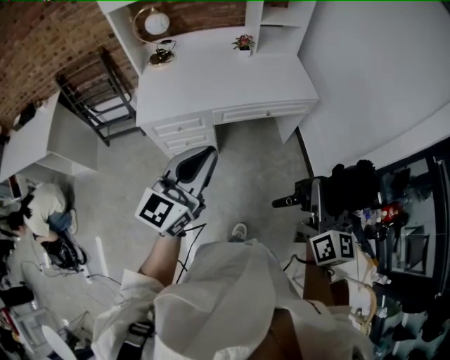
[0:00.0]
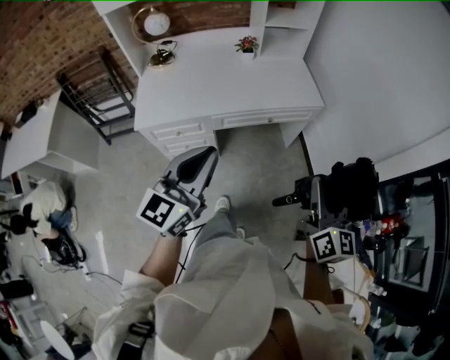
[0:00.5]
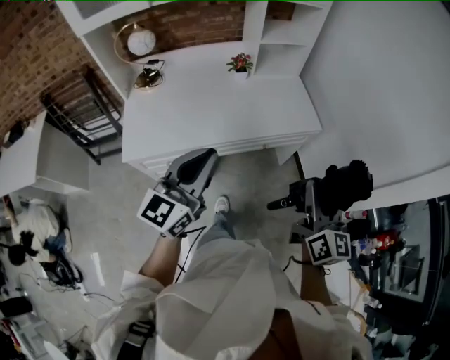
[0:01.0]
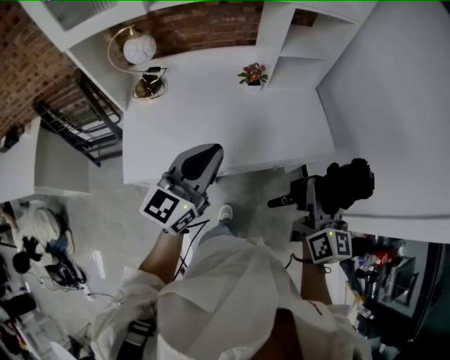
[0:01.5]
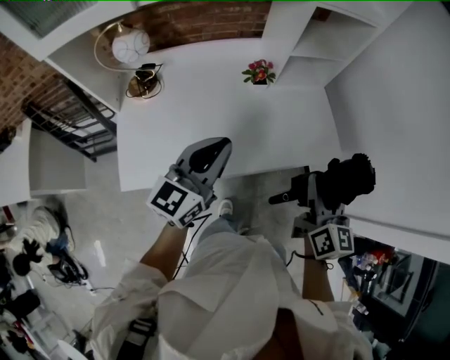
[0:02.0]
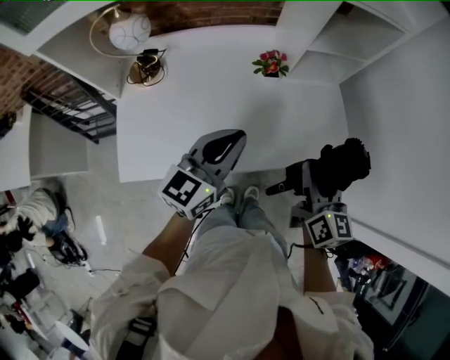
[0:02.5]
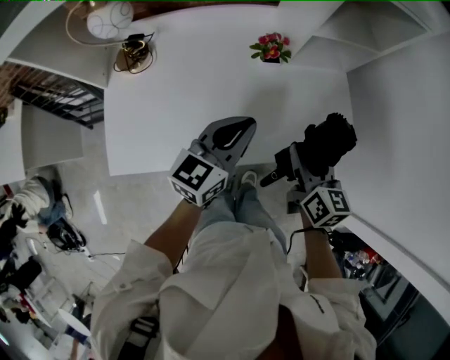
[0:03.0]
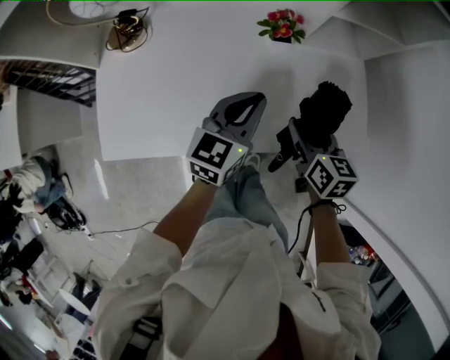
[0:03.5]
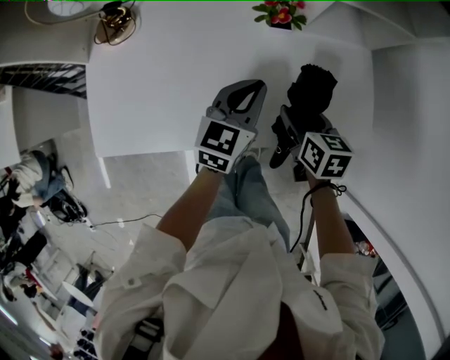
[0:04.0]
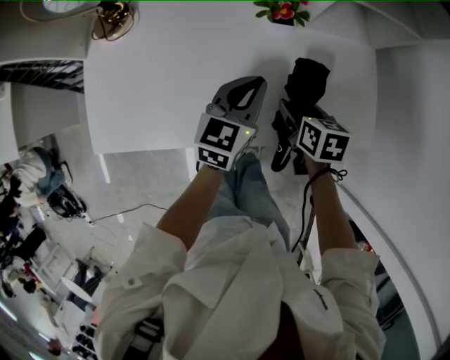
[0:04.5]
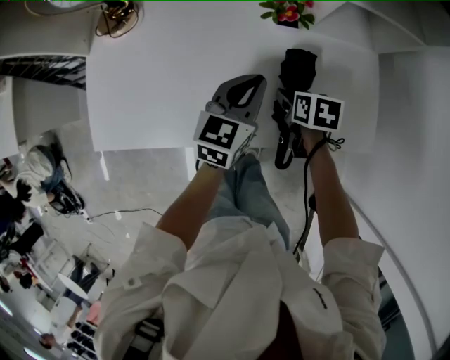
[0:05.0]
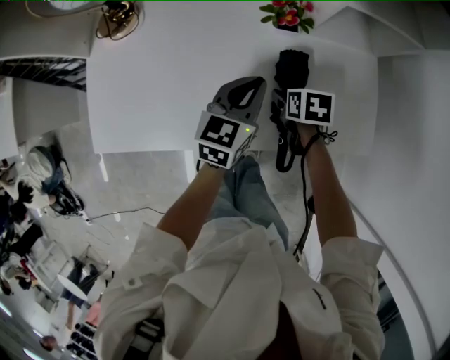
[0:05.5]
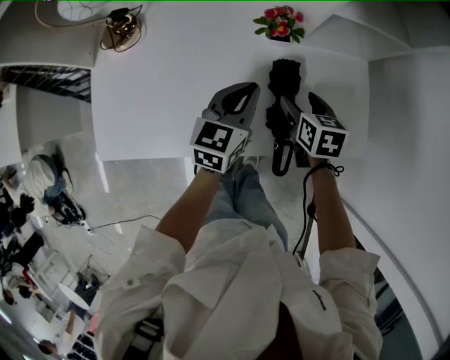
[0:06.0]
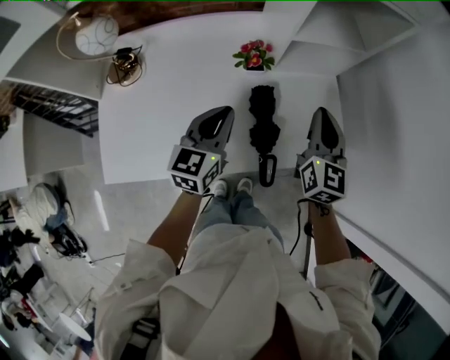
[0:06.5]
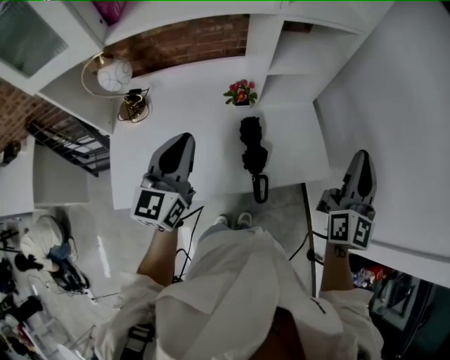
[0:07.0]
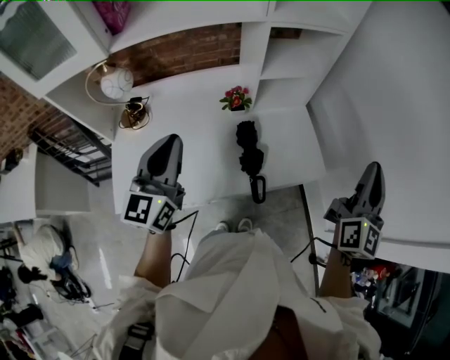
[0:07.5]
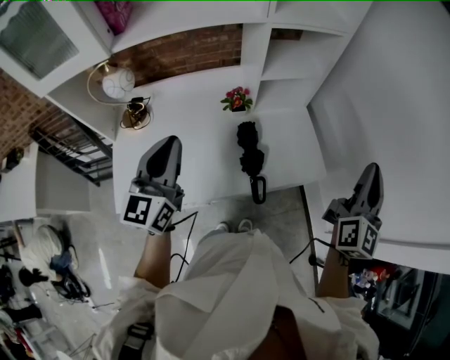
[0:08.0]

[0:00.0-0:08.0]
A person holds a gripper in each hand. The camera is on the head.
0:00.0 to 0:02.0: The pair of grippers is taken forward, roughly 50 cm.
0:02.0 to 0:04.0: The two grippers go roughly 35 cm downward and forward. The left gripper rotates about 20 degrees. The right gripper tilts its fingers approximately 40 degrees downward.
0:04.0 to 0:06.0: The right gripper is displaced forward by some 5 cm, and reaches roughly 10 cm downward, then returns.
0:06.0 to 0:08.0: The right gripper is displaced upward and to the right by approximately 50 cm, tilts its fingers roughly 60 degrees upward, and closes its fingers; the left gripper goes roughly 35 cm upward and backward, and swivels roughly 30 degrees.

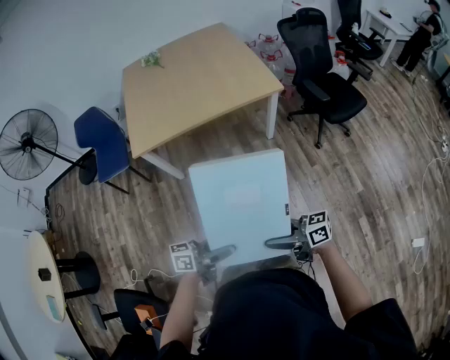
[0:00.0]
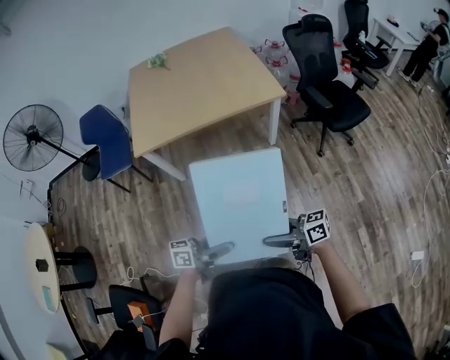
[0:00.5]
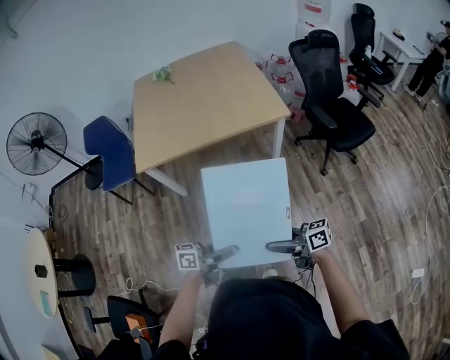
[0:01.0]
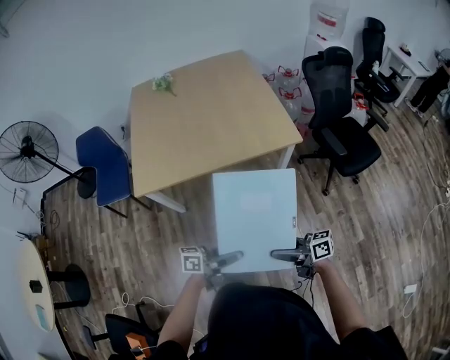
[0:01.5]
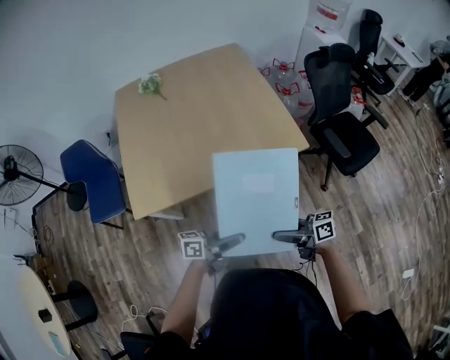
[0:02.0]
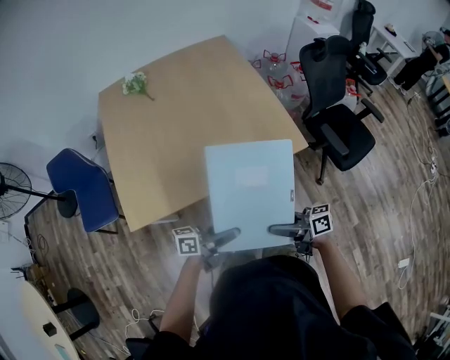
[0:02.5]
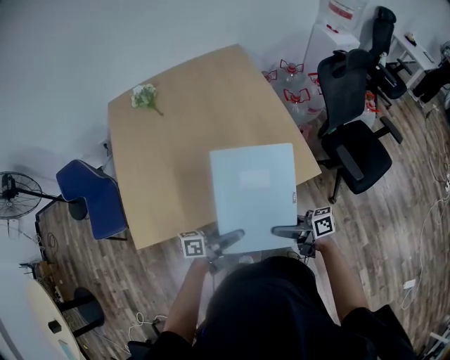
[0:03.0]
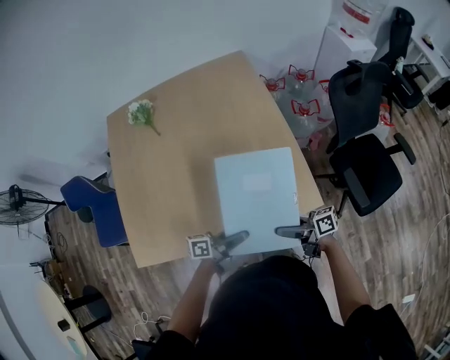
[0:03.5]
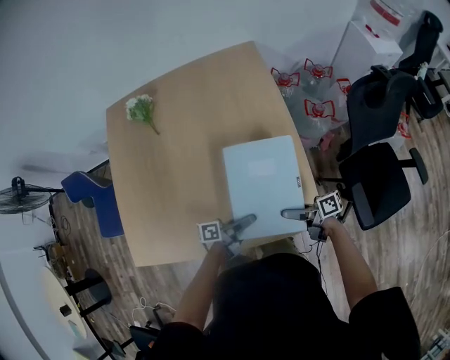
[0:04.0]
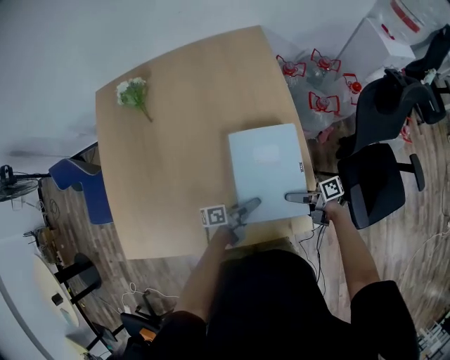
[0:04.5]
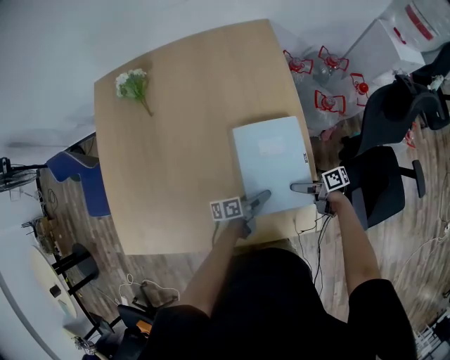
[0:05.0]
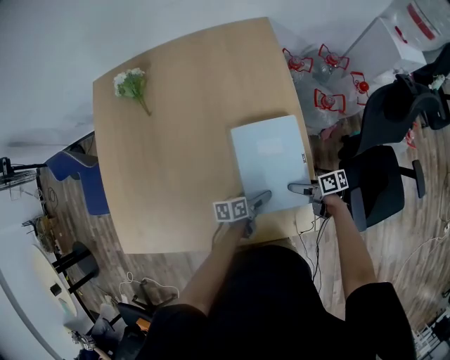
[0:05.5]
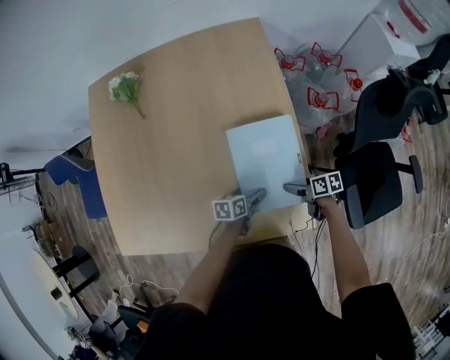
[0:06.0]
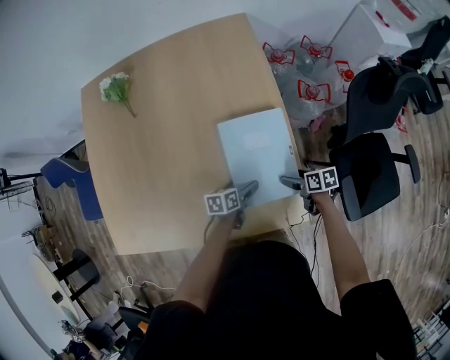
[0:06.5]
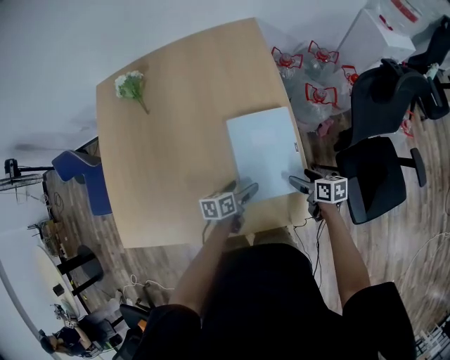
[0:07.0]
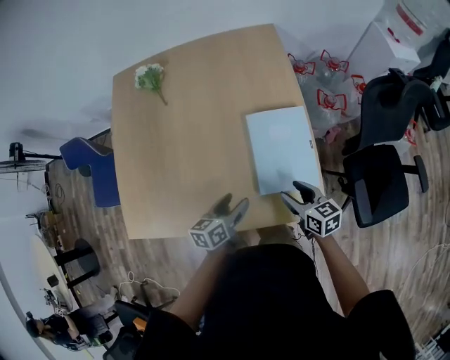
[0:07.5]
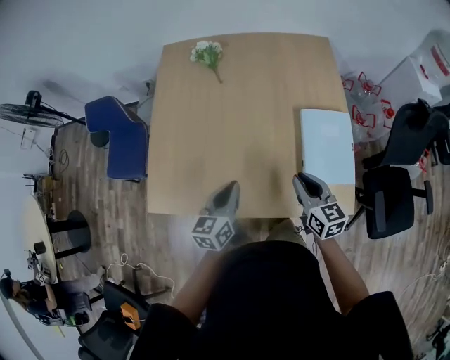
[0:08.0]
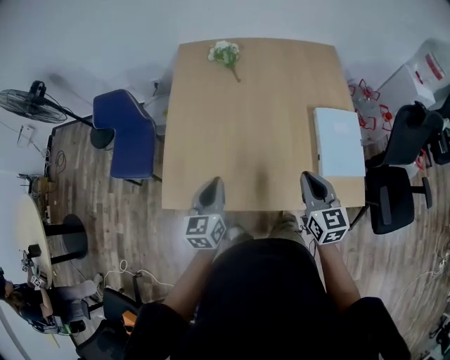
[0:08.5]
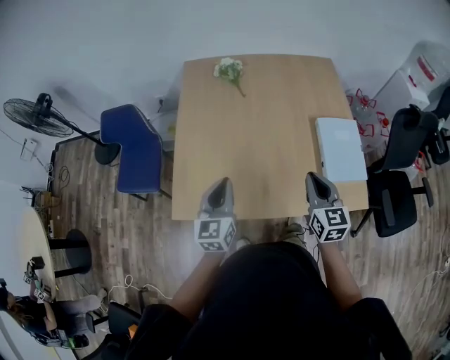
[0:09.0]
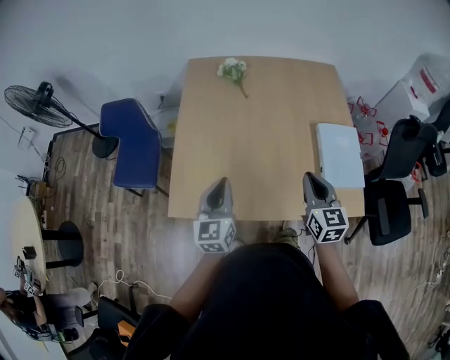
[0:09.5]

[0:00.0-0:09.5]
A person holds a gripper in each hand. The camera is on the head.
0:00.0 to 0:02.0: Both grippers are carried some 50 cm.
0:02.0 to 0:04.0: Both grippers are carried some 60 cm. The left gripper swivels roughly 30 degrees. The right gripper rotates roughly 20 degrees.
0:04.0 to 0:05.5: The two grippers go about 10 cm downward. The left gripper swivels approximately 30 degrees. Meanwhile the right gripper changes its angle by roughly 30 degrees.
0:05.5 to 0:07.5: The grippers both shift upward by some 15 cm. The right gripper swivels roughly 50 degrees, and closes; the left gripper rotates roughly 20 degrees.
0:07.5 to 0:09.5: Both grippers travel together to the left and upward, about 40 cm. The right gripper changes its angle by about 30 degrees, and closes its fingers. Meanwhile the left gripper changes its angle by roughly 50 degrees, and closes.

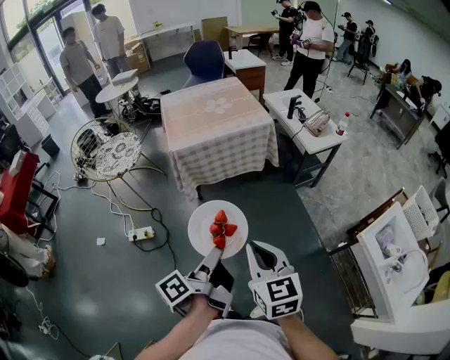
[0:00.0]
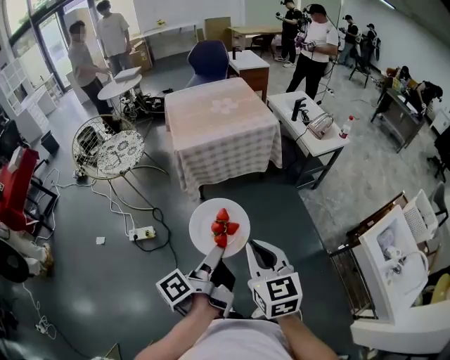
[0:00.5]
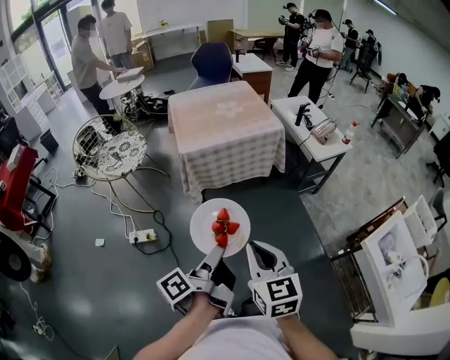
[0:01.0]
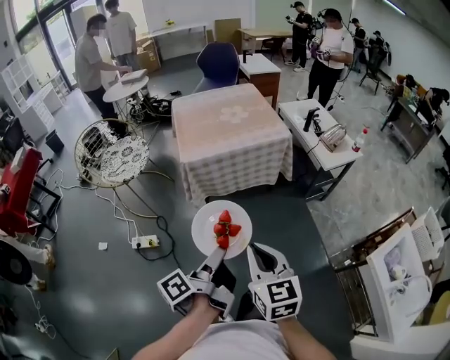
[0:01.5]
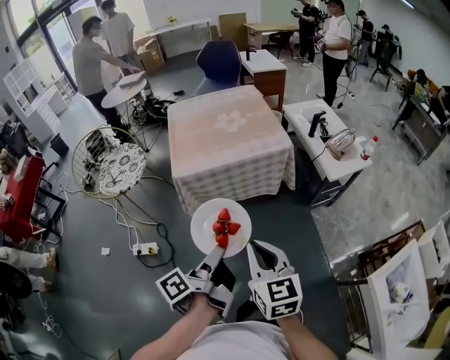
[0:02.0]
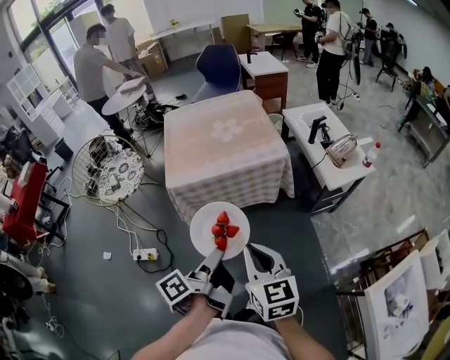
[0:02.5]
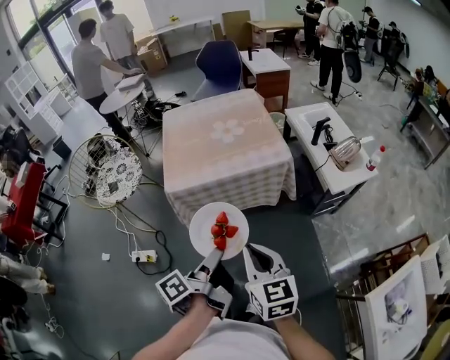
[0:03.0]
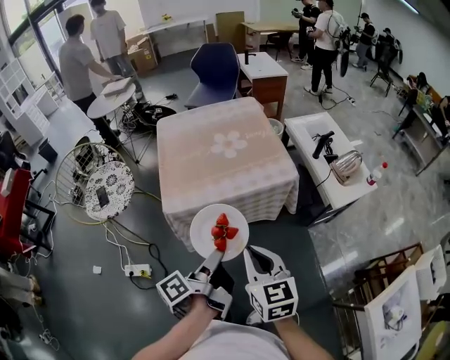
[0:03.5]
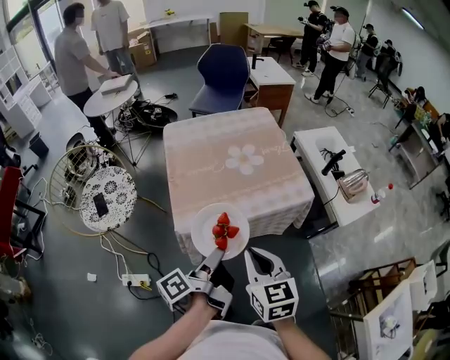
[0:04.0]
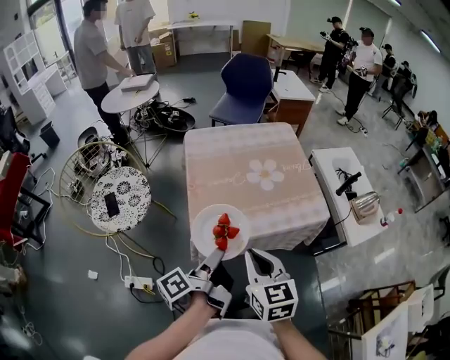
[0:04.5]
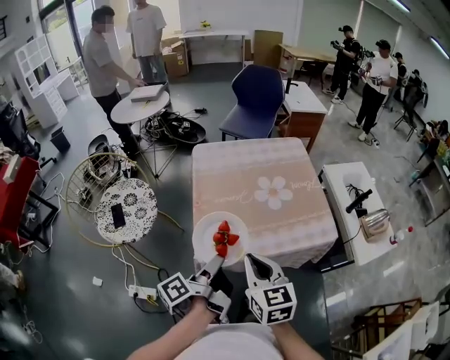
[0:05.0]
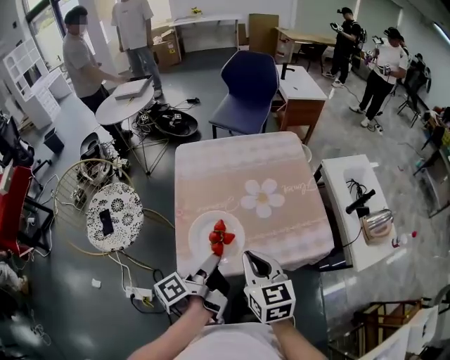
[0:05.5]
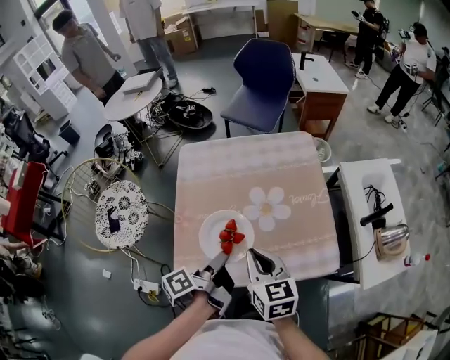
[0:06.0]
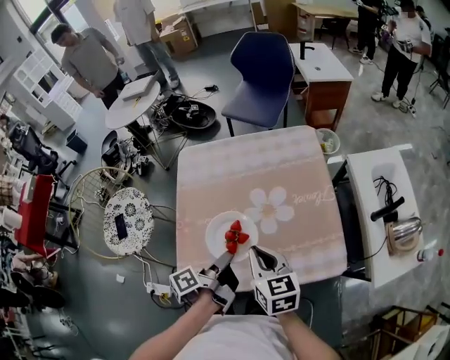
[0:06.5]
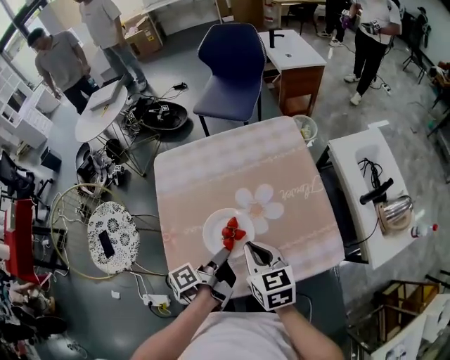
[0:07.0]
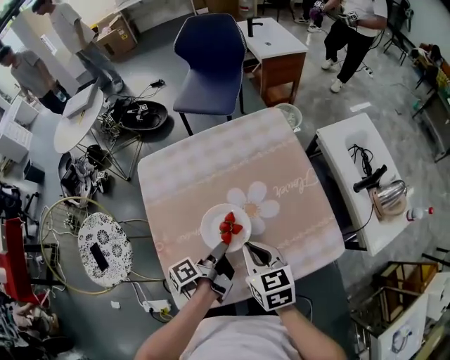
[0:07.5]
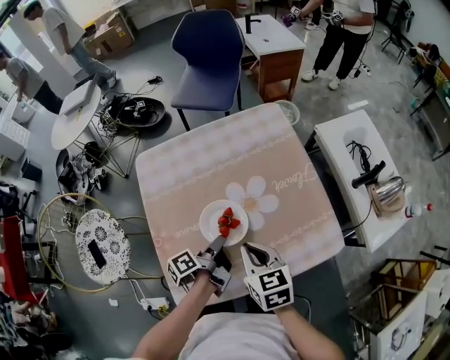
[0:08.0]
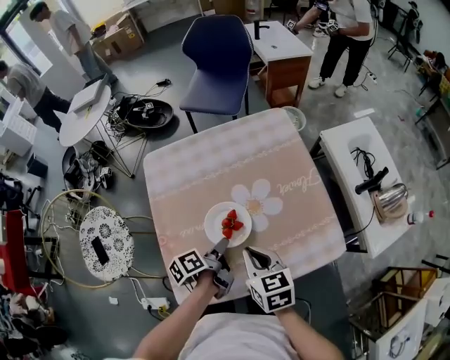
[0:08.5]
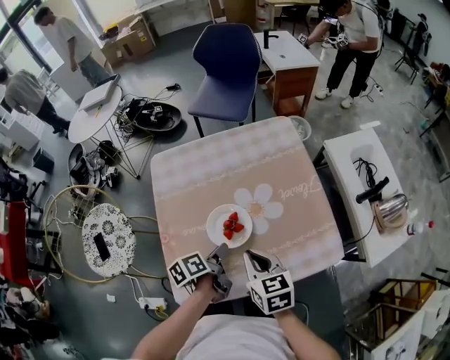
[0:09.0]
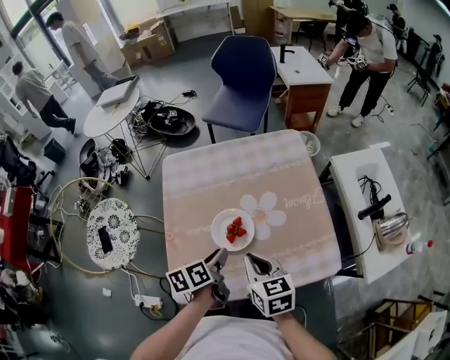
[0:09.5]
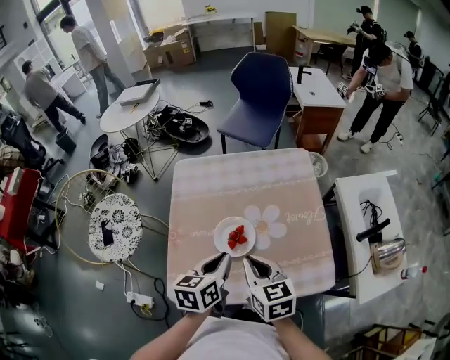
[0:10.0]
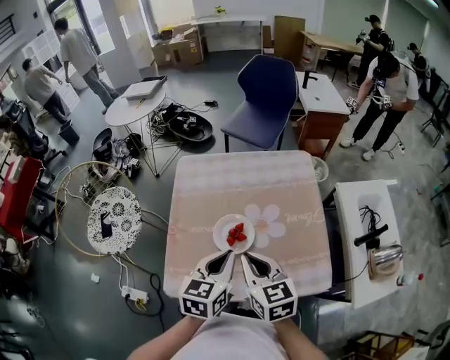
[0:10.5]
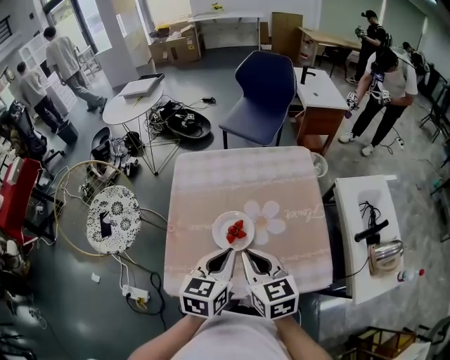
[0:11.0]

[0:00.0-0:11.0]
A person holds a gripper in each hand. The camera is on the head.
0:00.0 to 0:02.0: The right gripper moves approximately 20 cm.
0:02.0 to 0:03.5: The right gripper shifts by approximately 20 cm.
0:03.5 to 0:05.5: The right gripper moves approximately 30 cm.
0:05.5 to 0:07.5: The right gripper shifts by roughly 20 cm.
0:09.0 to 0:11.0: The right gripper moves upward, some 10 cm.
